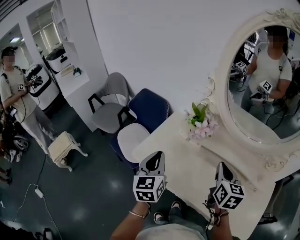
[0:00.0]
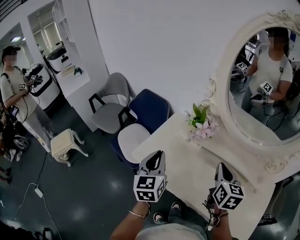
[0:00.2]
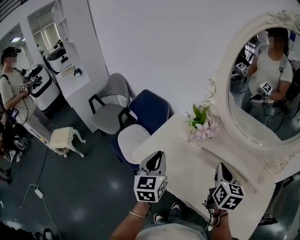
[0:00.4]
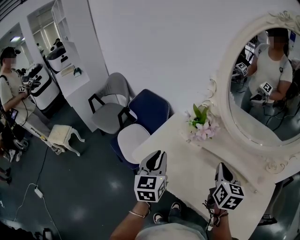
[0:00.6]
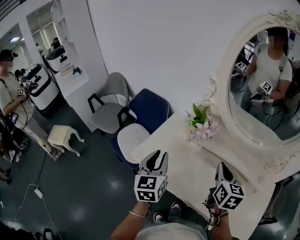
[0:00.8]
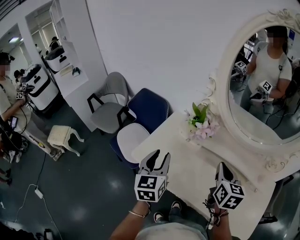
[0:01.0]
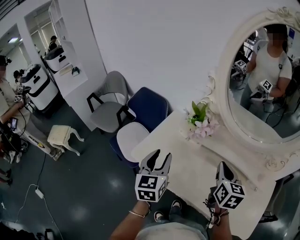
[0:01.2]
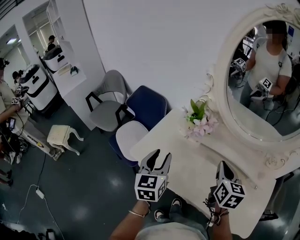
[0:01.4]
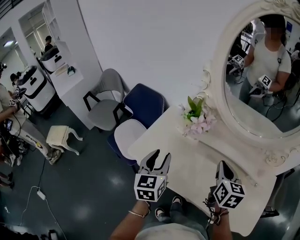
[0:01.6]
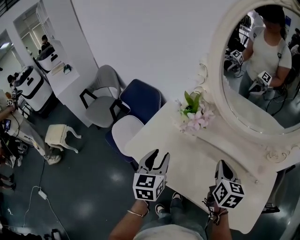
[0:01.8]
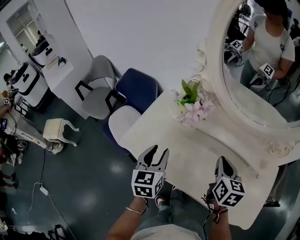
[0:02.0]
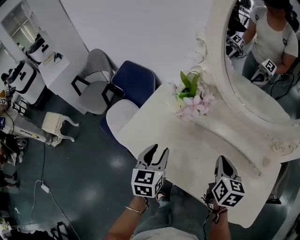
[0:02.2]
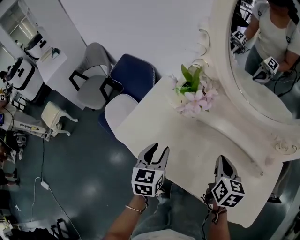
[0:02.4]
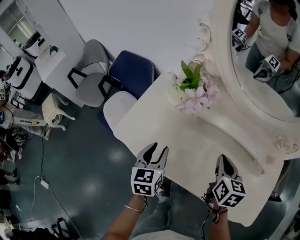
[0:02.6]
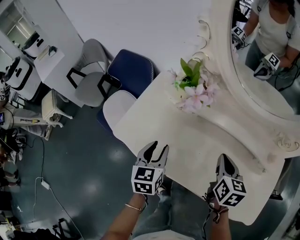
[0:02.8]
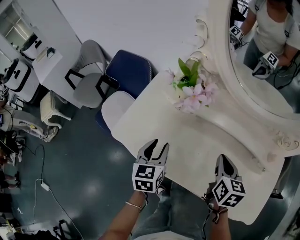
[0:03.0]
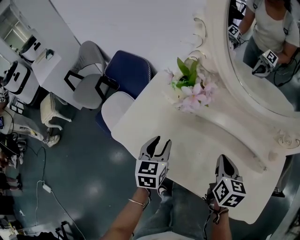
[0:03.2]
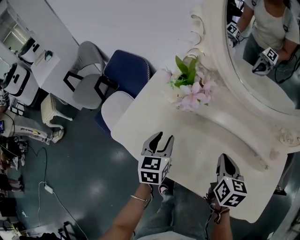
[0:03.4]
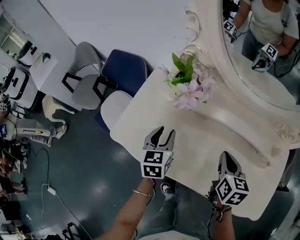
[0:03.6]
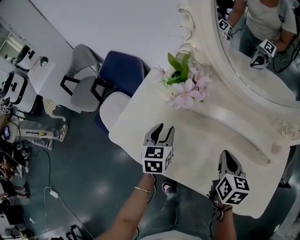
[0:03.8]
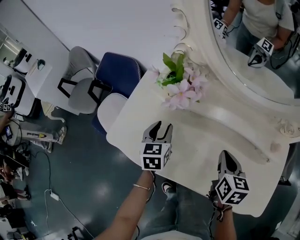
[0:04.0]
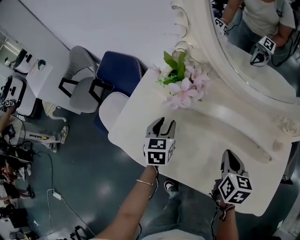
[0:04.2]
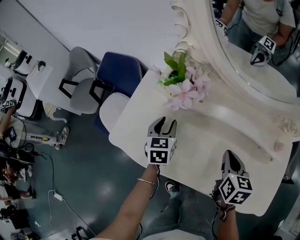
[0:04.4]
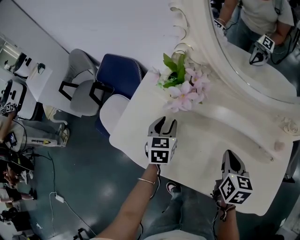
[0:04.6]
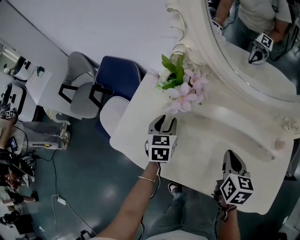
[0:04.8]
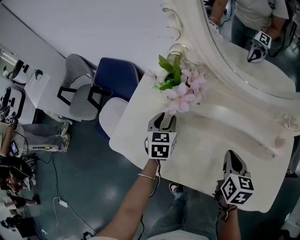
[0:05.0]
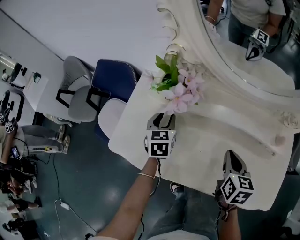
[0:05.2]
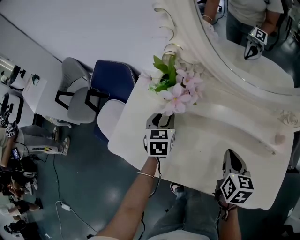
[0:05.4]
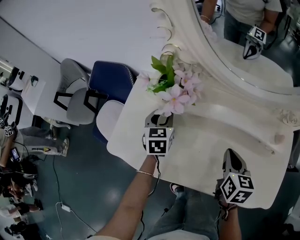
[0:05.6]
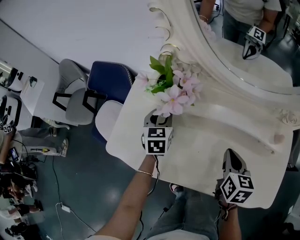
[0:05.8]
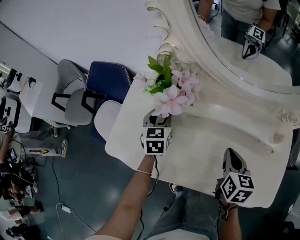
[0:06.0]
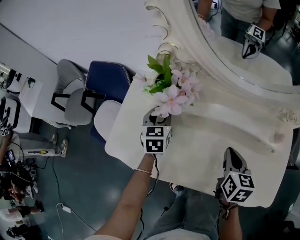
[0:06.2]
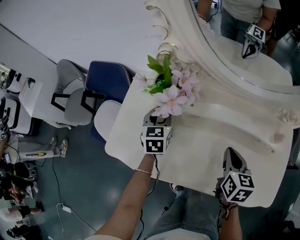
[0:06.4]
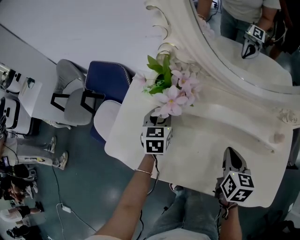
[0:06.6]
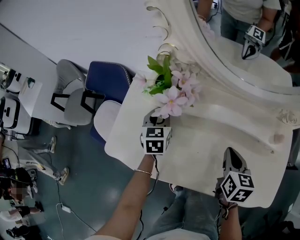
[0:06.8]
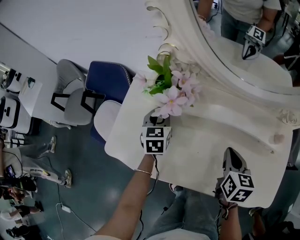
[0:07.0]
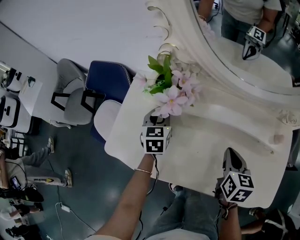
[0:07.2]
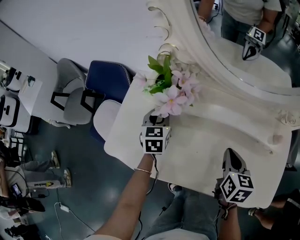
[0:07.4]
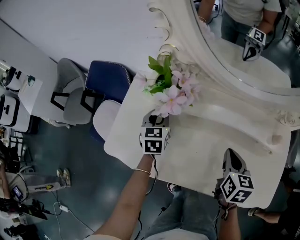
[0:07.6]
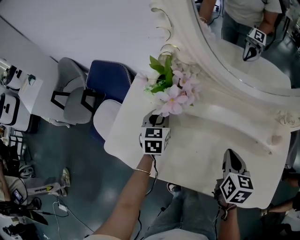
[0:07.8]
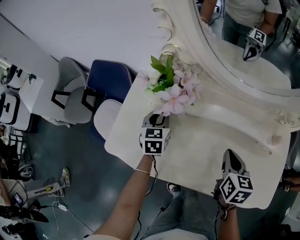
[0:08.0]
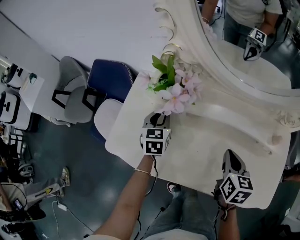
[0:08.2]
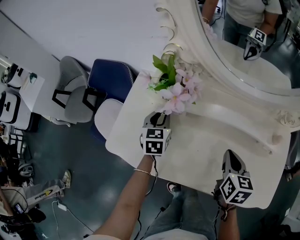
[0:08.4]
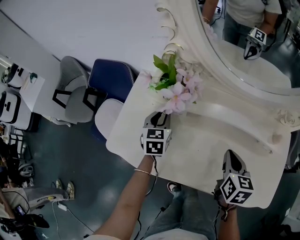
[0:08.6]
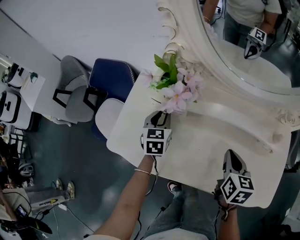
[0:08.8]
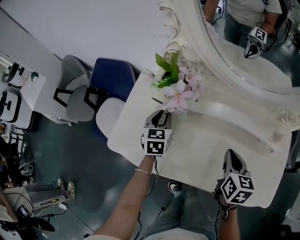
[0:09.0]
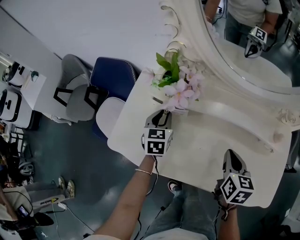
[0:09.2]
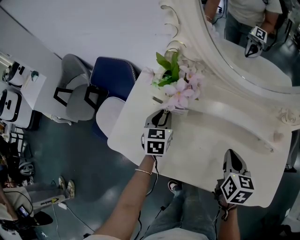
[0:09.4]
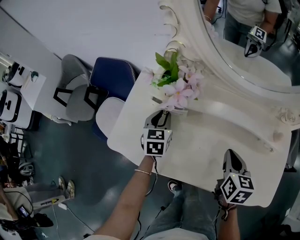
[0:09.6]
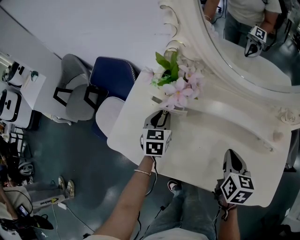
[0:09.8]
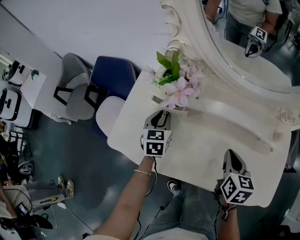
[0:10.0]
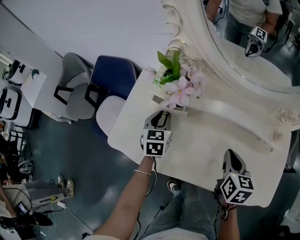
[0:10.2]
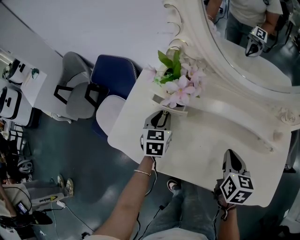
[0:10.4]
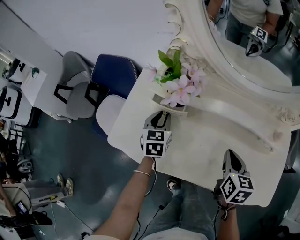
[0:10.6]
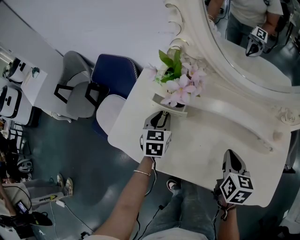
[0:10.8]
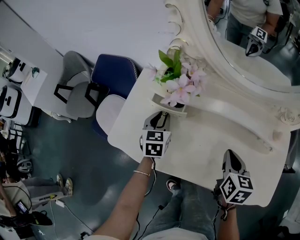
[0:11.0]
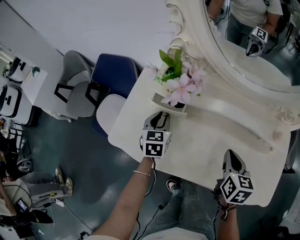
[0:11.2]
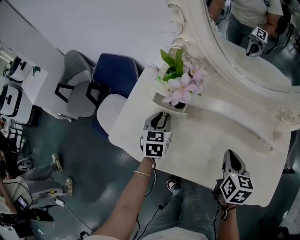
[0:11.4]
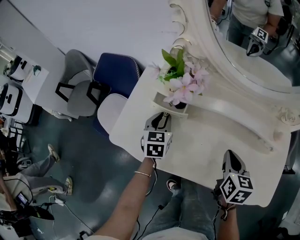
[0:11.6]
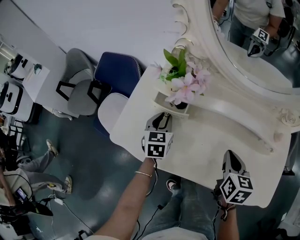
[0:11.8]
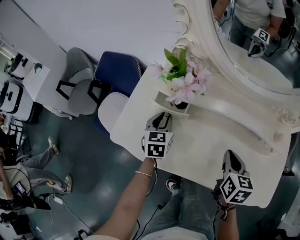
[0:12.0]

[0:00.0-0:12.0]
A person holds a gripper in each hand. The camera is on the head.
0.0 to 1.6 s: The left gripper opens its fingers.
1.6 to 3.0 s: The grippers both shift downward by approximately 10 cm.
3.0 to 4.4 s: The left gripper moves forward, some 10 cm.
4.4 to 6.0 s: The left gripper goes roughly 5 cm forward.
6.0 to 7.6 s: Both grippers stay about where they are.
7.6 to 10.4 s: The grippers move only a little.
10.4 to 12.0 s: The grippers make only small movements.

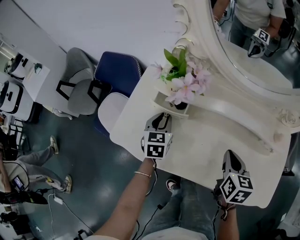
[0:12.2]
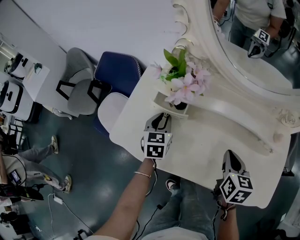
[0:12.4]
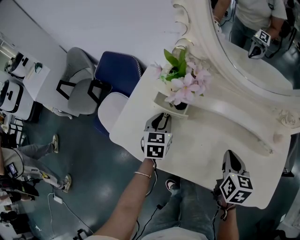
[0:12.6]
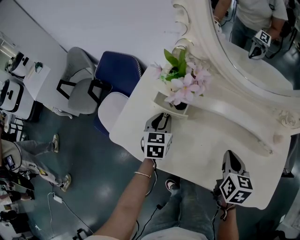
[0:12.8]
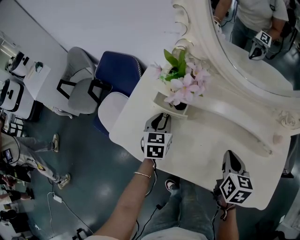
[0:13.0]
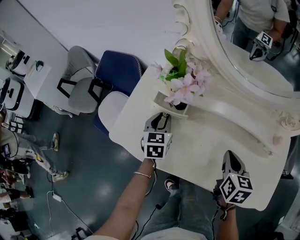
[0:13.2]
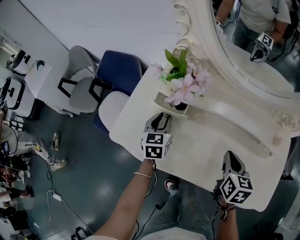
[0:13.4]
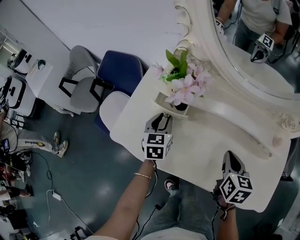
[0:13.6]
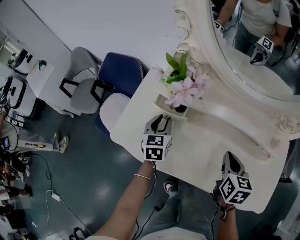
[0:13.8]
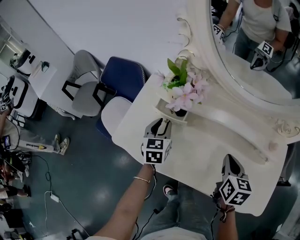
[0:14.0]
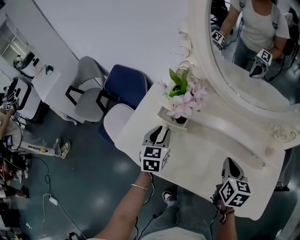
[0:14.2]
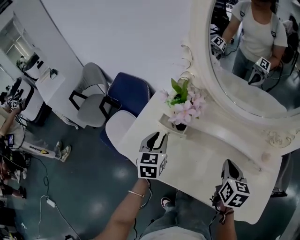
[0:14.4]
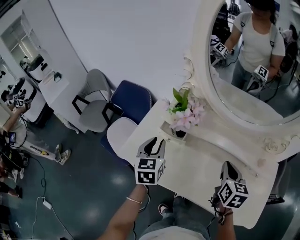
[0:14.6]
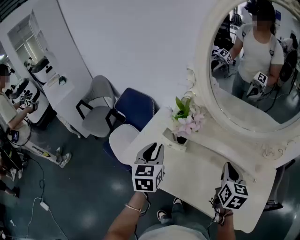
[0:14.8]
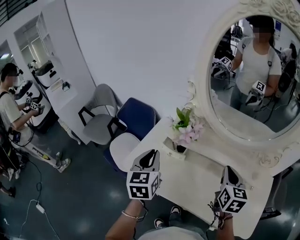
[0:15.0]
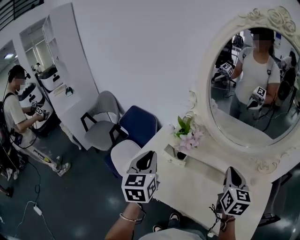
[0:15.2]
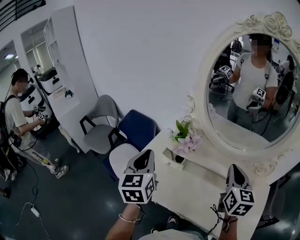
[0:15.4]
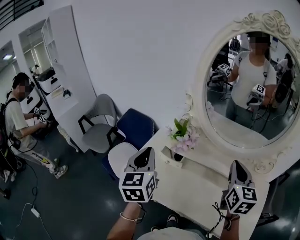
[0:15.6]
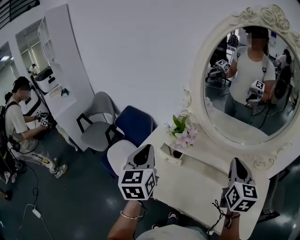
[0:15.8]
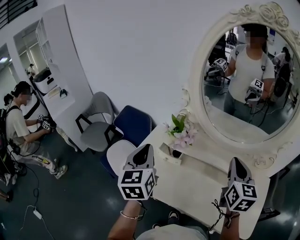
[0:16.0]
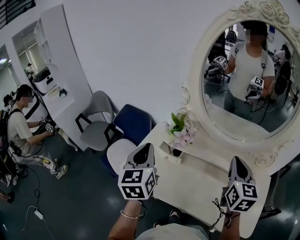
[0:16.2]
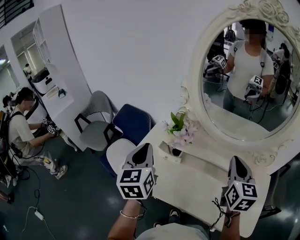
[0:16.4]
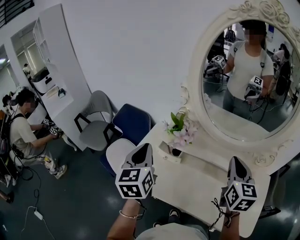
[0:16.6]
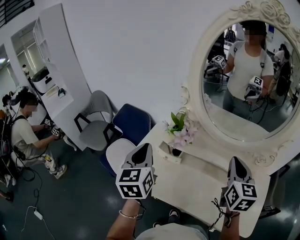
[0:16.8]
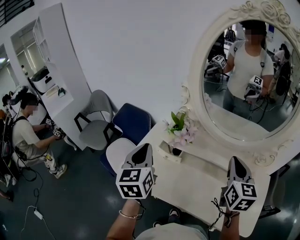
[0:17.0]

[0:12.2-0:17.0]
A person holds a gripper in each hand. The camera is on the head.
12.2 to 13.8 s: The two grippers keep their place.
13.8 to 15.4 s: Both grippers travel together upward, some 25 cm. The left gripper swivels about 20 degrees, and closes, while the right gripper changes its angle by about 30 degrees.
15.4 to 17.0 s: The grippers move only a little.

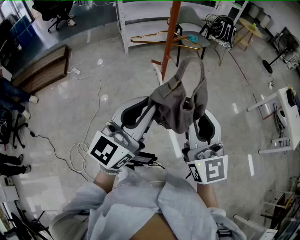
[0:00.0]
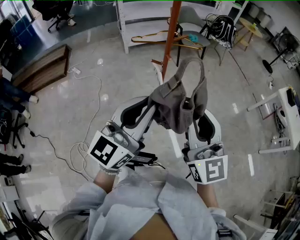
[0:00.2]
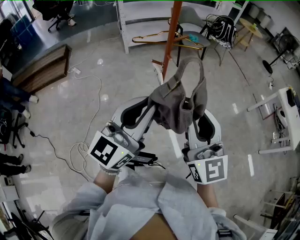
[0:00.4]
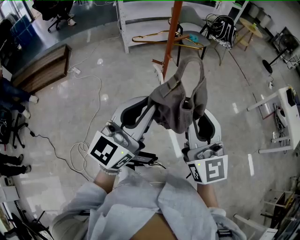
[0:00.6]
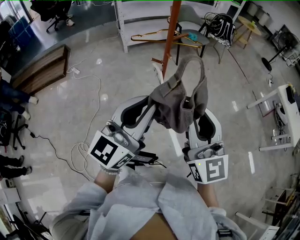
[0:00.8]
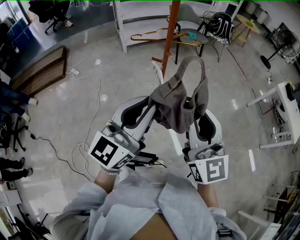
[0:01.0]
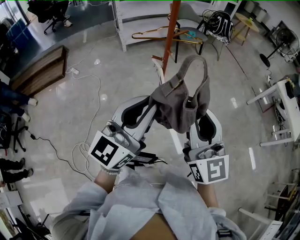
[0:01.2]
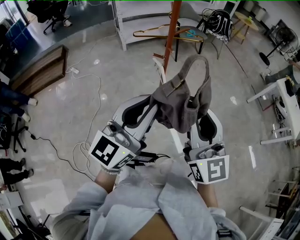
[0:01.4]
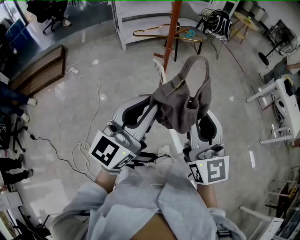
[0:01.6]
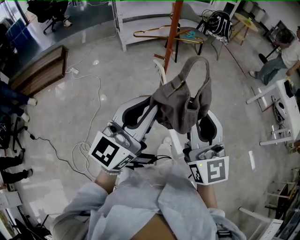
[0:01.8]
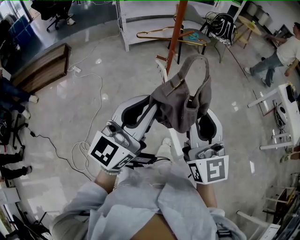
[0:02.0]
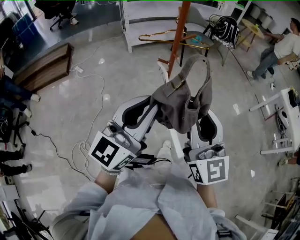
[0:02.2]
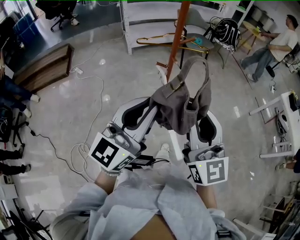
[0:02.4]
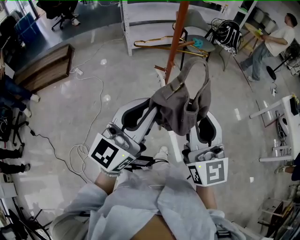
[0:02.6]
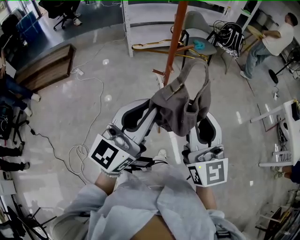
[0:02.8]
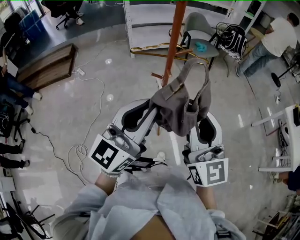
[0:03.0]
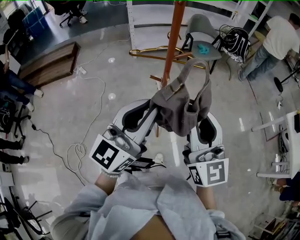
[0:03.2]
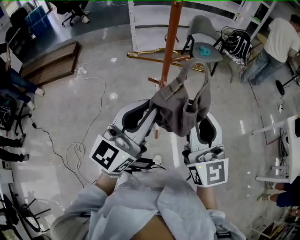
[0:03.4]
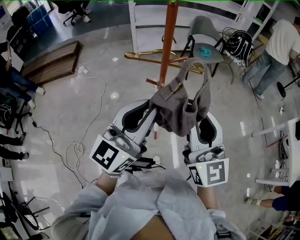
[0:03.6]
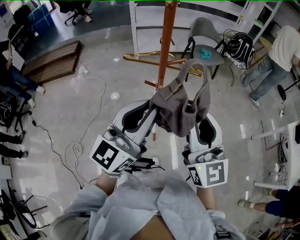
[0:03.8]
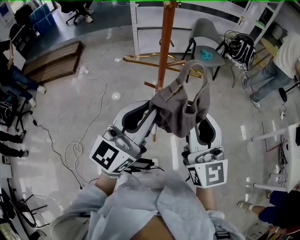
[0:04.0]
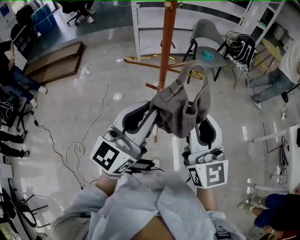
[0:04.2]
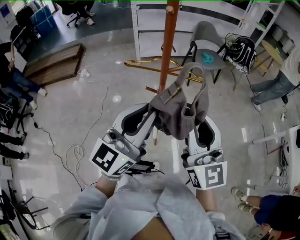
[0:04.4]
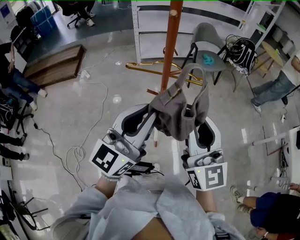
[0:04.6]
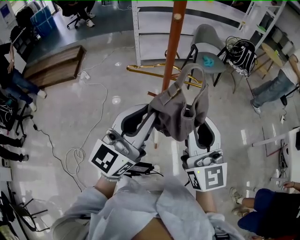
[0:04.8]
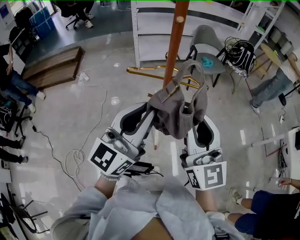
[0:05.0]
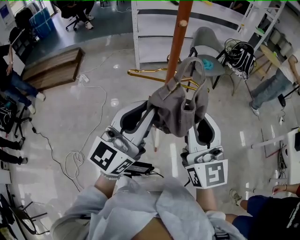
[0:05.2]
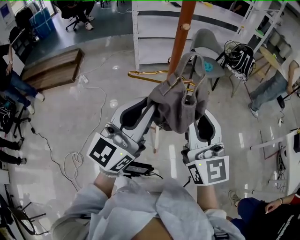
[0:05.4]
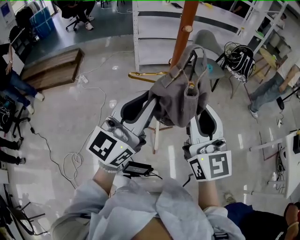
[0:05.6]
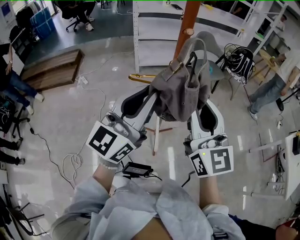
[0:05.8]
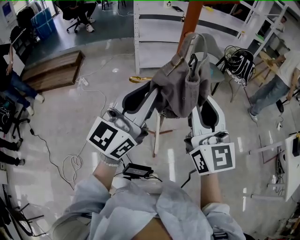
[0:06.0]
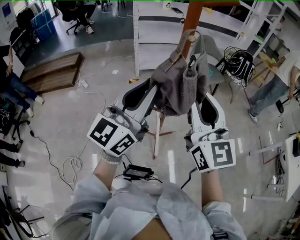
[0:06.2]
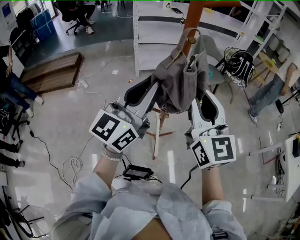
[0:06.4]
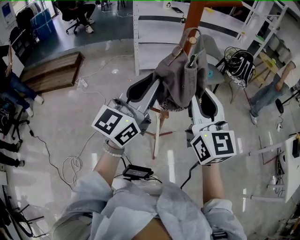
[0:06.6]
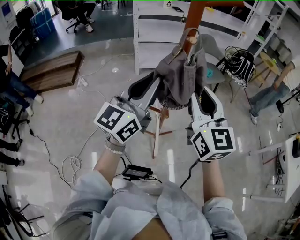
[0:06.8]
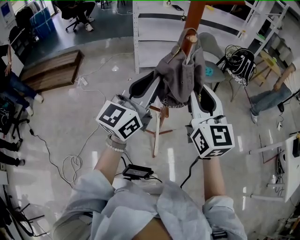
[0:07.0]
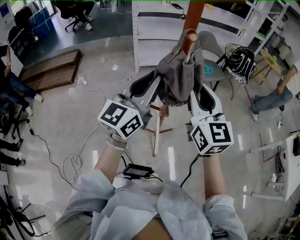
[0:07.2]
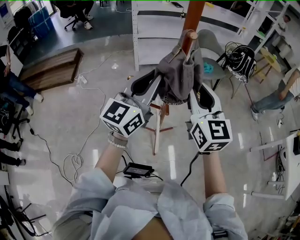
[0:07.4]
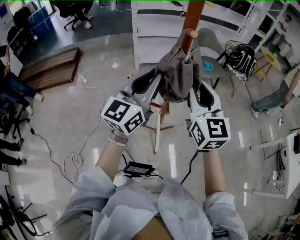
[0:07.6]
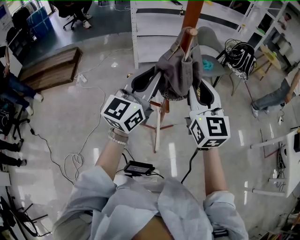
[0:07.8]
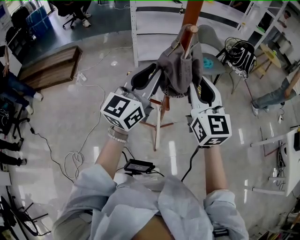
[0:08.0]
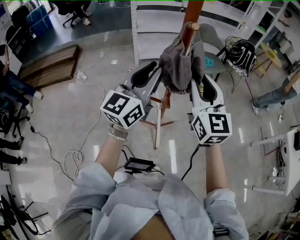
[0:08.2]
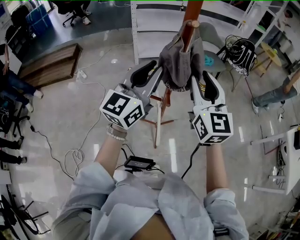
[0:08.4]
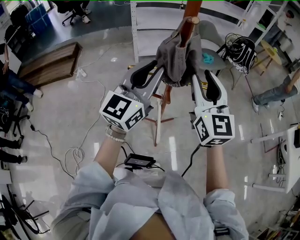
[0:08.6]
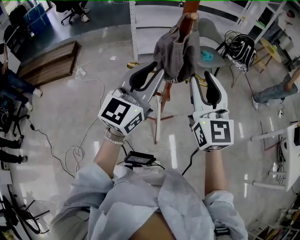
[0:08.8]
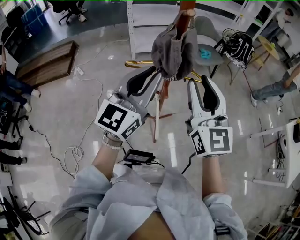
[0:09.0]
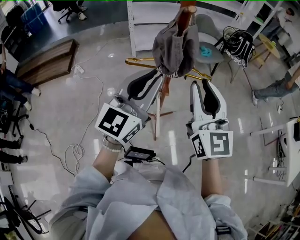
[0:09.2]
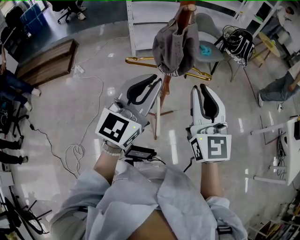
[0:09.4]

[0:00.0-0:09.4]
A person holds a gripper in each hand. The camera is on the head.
0.0 to 1.6 s: The grippers stay close to where they were, moving slightly.
1.6 to 3.2 s: Both grippers travel together forward and to the right, about 20 cm.
3.2 to 4.8 s: The grippers make only small movements.
4.8 to 6.2 s: Both grippers travel together forward, upward and to the left, approximately 15 cm.
6.2 to 7.8 s: Both grippers travel together forward and downward, approximately 10 cm.
7.8 to 9.4 s: The grippers both shift backward by some 10 cm.
